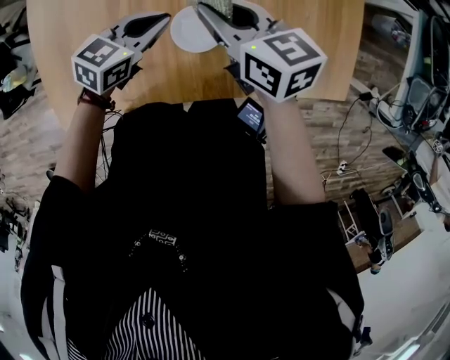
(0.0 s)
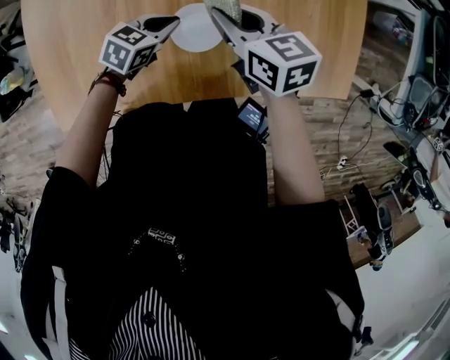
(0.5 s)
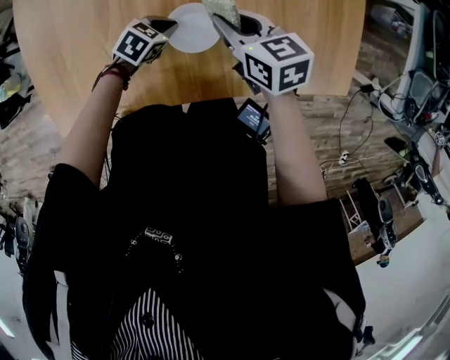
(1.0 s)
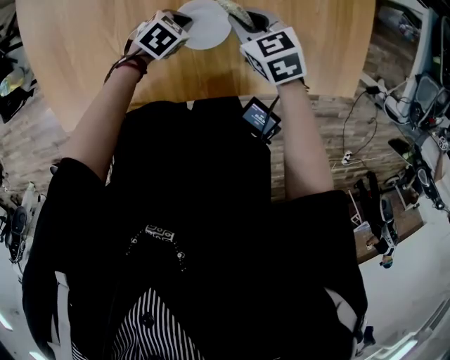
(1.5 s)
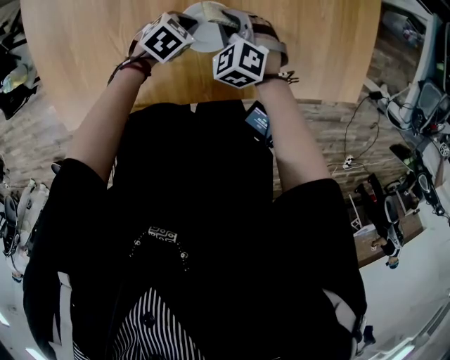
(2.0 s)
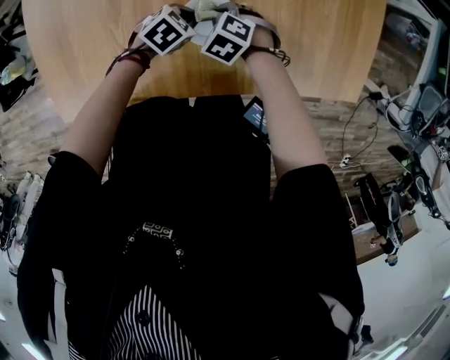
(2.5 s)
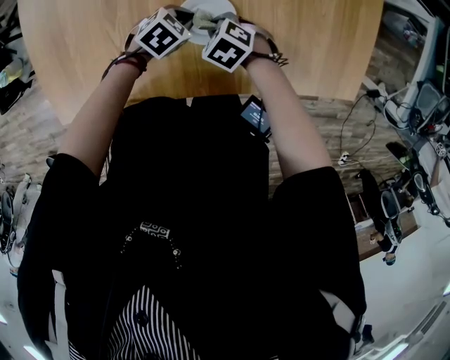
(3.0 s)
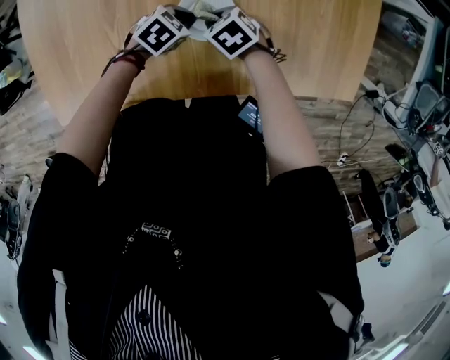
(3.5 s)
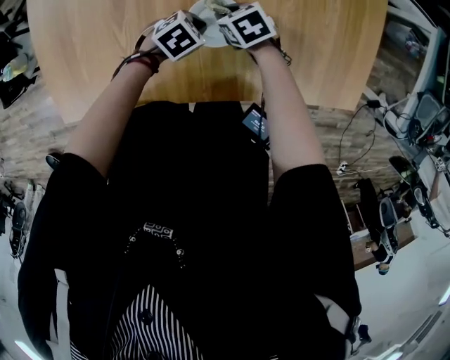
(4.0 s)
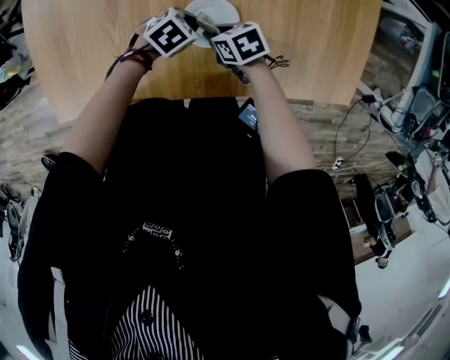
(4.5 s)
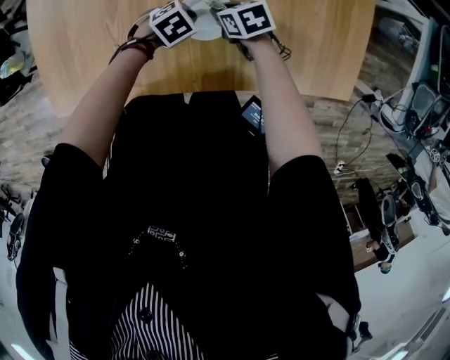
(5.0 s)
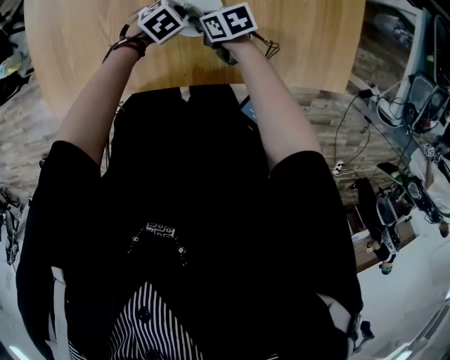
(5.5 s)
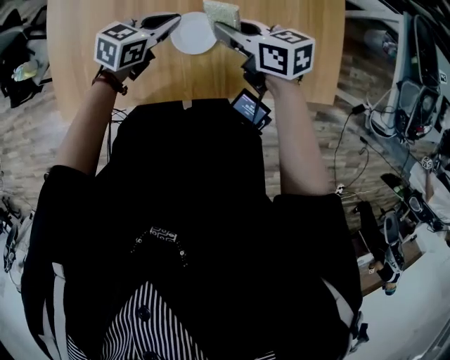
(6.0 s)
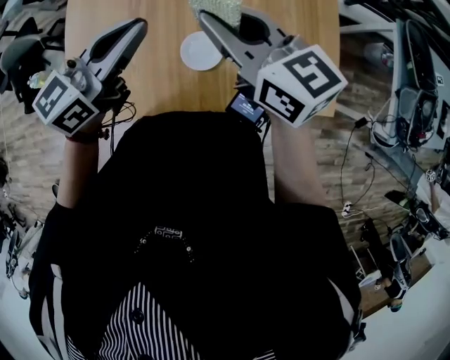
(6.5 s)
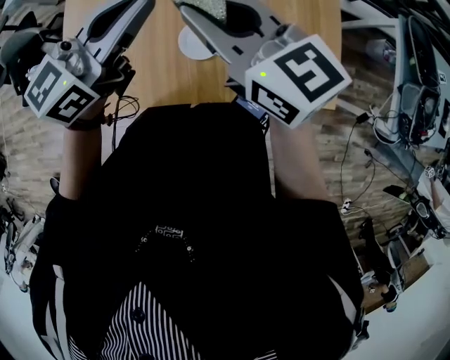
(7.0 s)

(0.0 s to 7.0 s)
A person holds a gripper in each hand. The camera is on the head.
0.0 s - 2.0 s: Both grippers move downward, about 20 cm. The right gripper rotates around the line of its fingers by about 50 degrees, counterclockwise from behind; the left gripper turns by approximately 30 degrees.
2.0 s - 3.5 s: The right gripper changes place by about 5 cm, and swivels approximately 40 degrees.
5.0 s - 7.0 s: The two grippers go approximately 50 cm upward. The right gripper angles its fingers upward, by about 50 degrees; the left gripper tilts its fingers approximately 70 degrees upward.

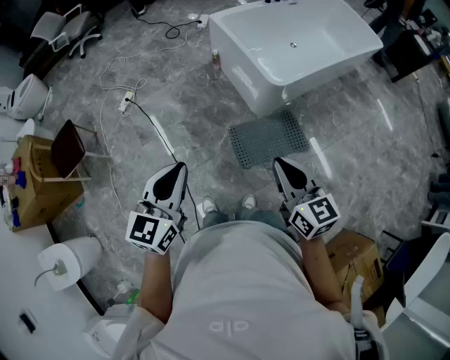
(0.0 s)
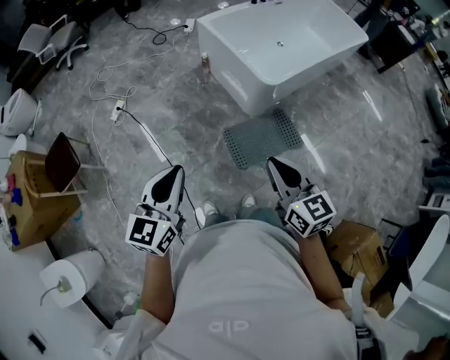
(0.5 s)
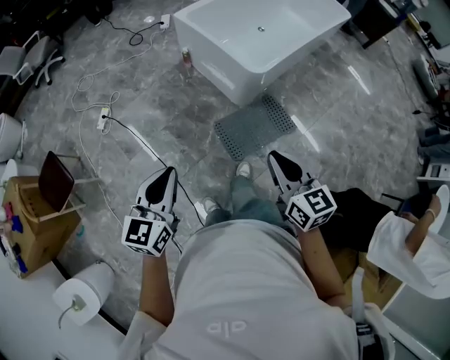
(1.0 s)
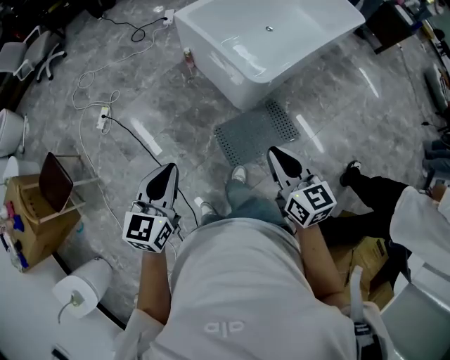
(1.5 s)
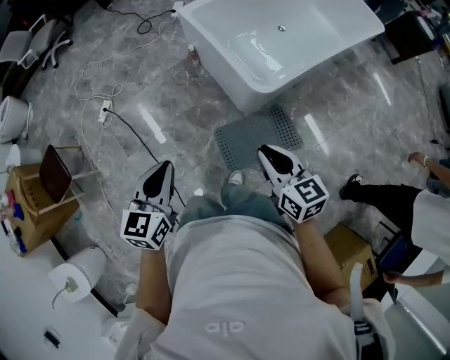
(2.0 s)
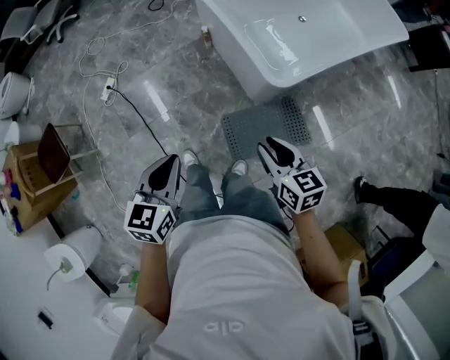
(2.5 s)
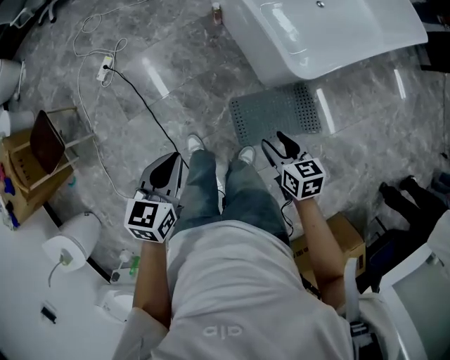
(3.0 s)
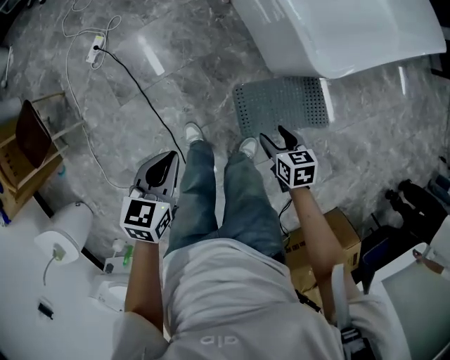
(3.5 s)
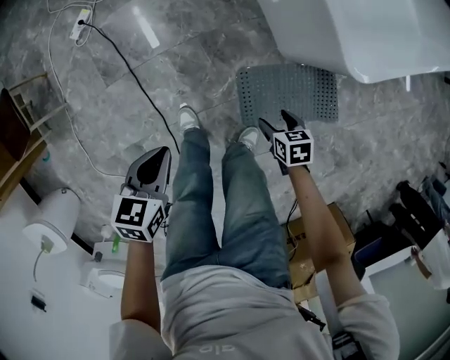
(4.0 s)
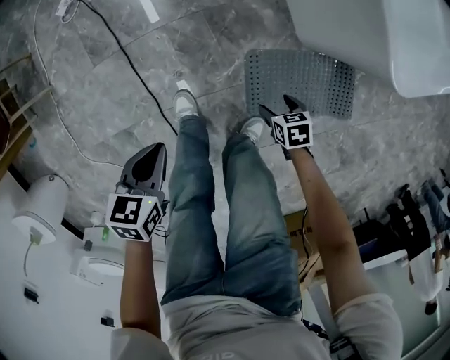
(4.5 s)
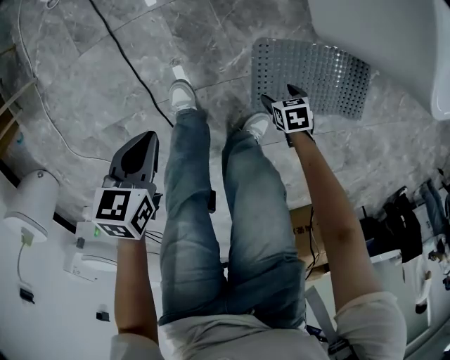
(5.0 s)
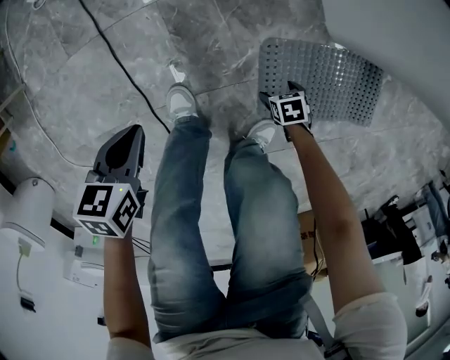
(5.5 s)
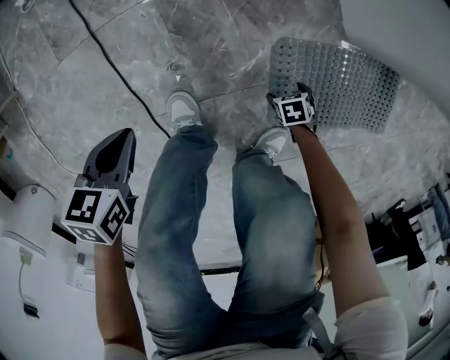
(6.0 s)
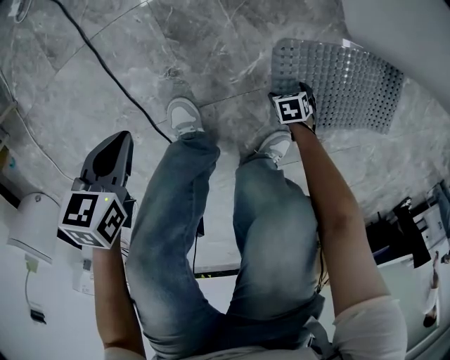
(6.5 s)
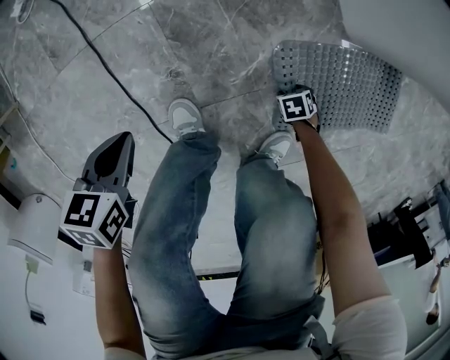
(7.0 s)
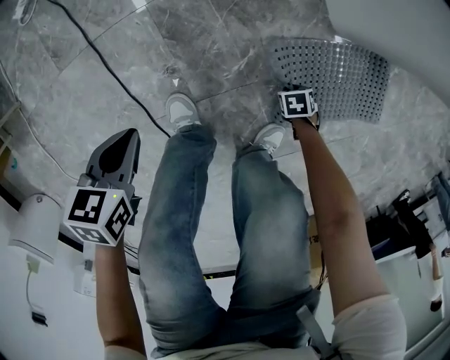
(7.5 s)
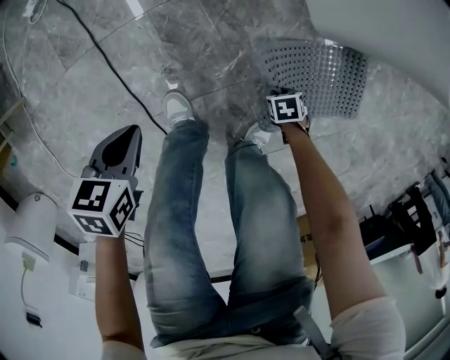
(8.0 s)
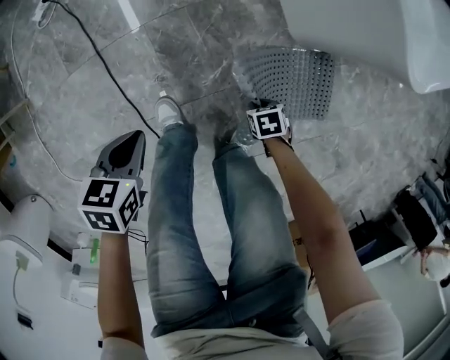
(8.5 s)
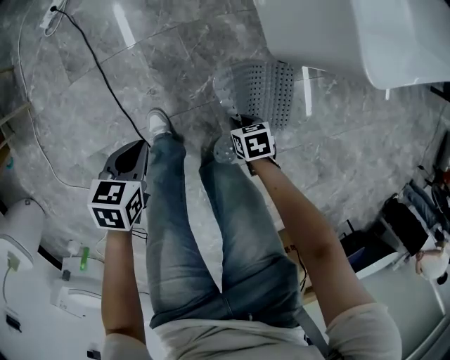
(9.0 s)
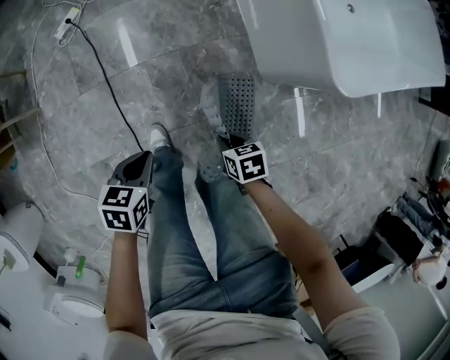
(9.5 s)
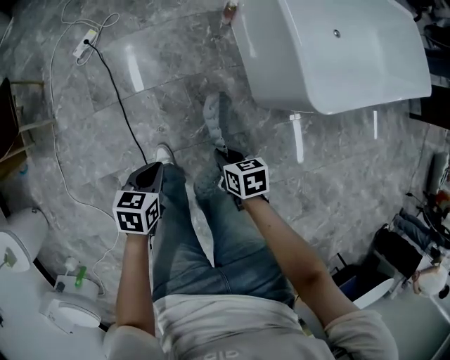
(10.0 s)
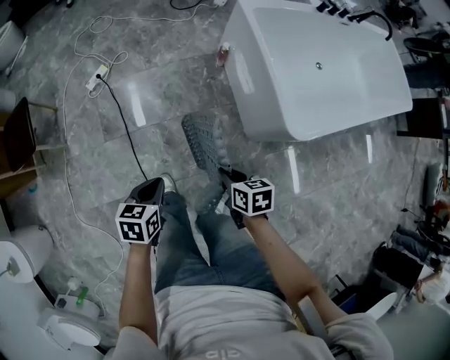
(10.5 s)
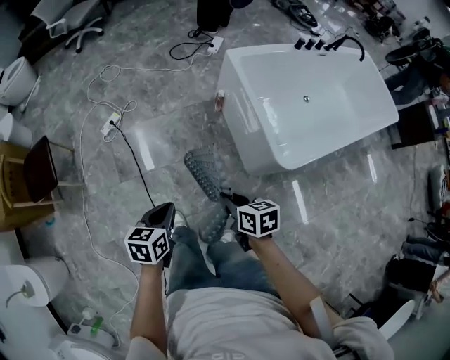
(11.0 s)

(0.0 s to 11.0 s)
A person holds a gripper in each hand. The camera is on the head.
0.0 s - 2.0 s: The left gripper shifts roughly 25 cm forward, while the right gripper moves forward and downward, approximately 25 cm.
2.0 s - 3.5 s: The left gripper shifts approximately 25 cm downward and to the left, and swivels approximately 20 degrees, while the right gripper heads downward, covering roughly 35 cm, angles its fingers downward, by some 30 degrees, and opens.
3.5 s - 5.5 s: Both grippers travel together downward, some 50 cm. The left gripper turns by some 20 degrees; the right gripper turns by some 30 degrees.
5.5 s - 7.5 s: The right gripper closes.
7.5 s - 9.0 s: The left gripper travels upward by approximately 15 cm. Meanwhile the right gripper shifts approximately 30 cm upward, and turns by about 20 degrees.
9.0 s - 11.0 s: Both grippers travel together upward, roughly 50 cm. The right gripper turns by roughly 30 degrees. Meanwhile the left gripper swivels some 20 degrees.

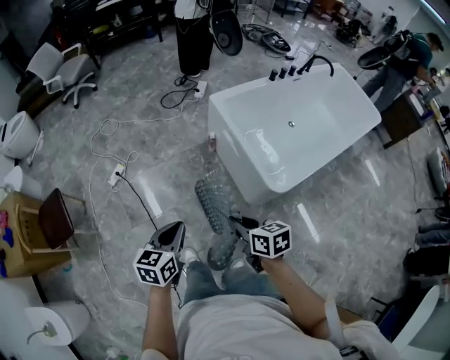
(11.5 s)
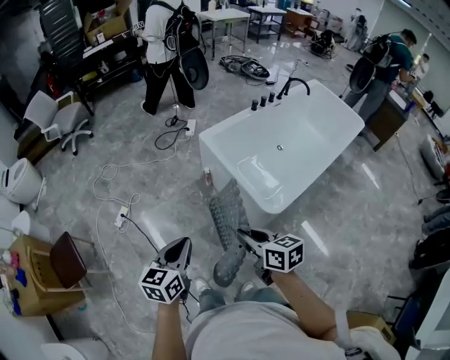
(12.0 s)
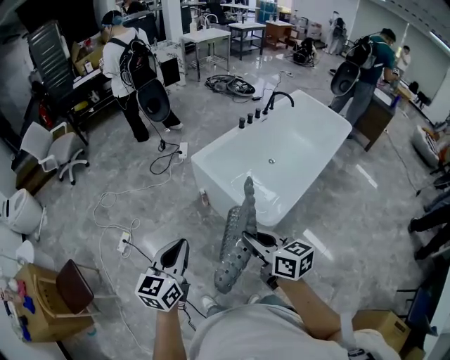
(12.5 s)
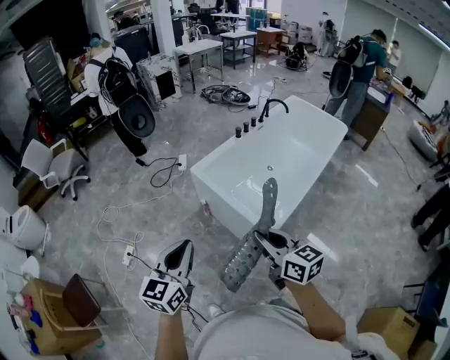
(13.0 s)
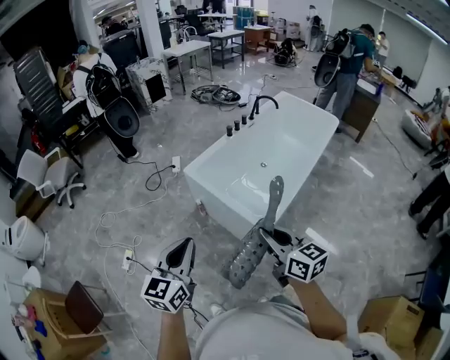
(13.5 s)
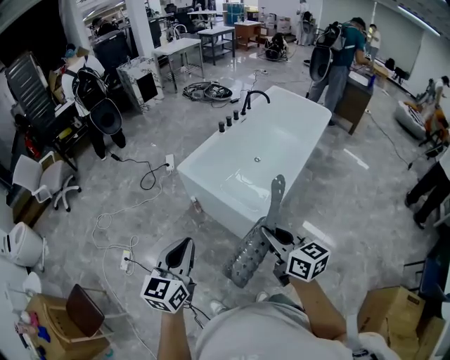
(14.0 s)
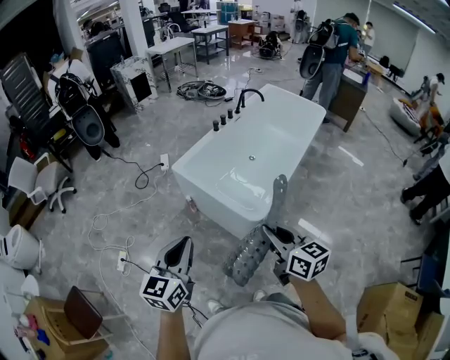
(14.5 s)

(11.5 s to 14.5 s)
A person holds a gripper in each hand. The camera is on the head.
11.5 s - 13.0 s: The right gripper heads upward and to the right, covering approximately 25 cm, and changes its angle by approximately 30 degrees, while the left gripper heads upward, covering some 25 cm, and rotates approximately 30 degrees.
13.0 s - 14.5 s: The left gripper moves about 5 cm, while the right gripper heads to the right, covering about 10 cm.

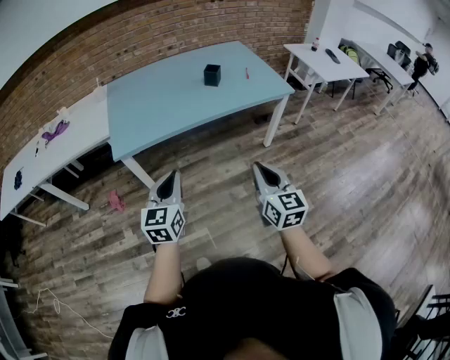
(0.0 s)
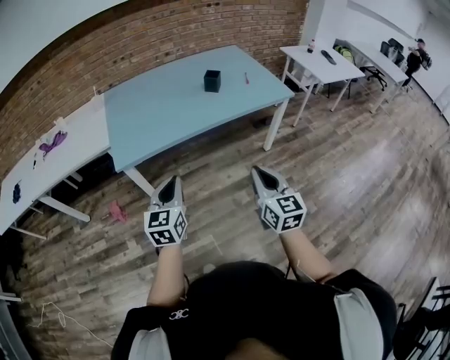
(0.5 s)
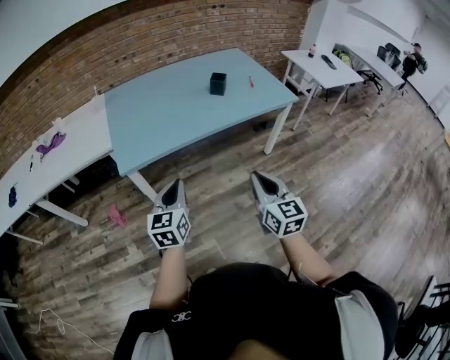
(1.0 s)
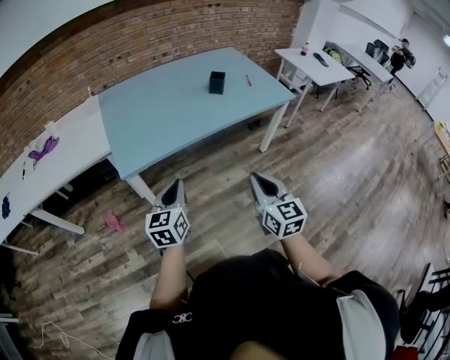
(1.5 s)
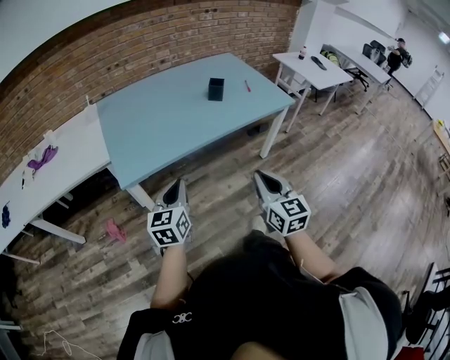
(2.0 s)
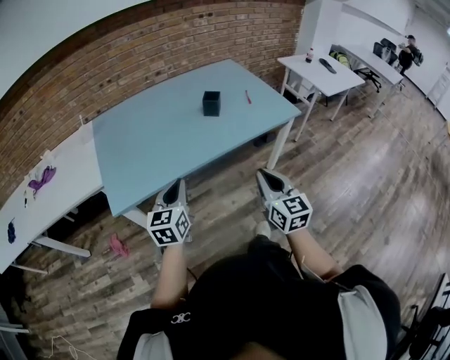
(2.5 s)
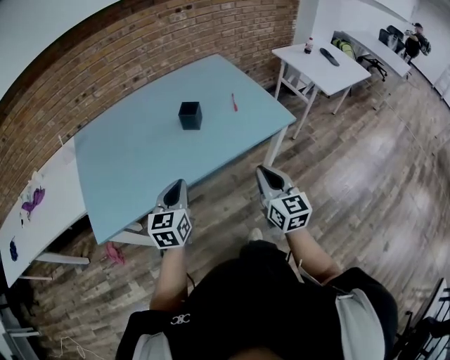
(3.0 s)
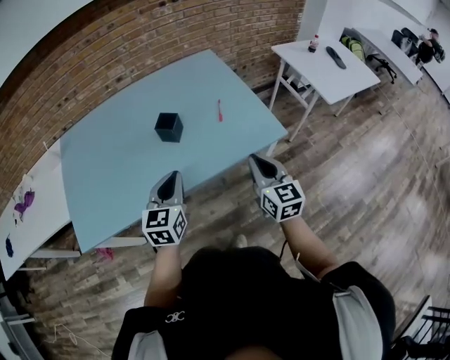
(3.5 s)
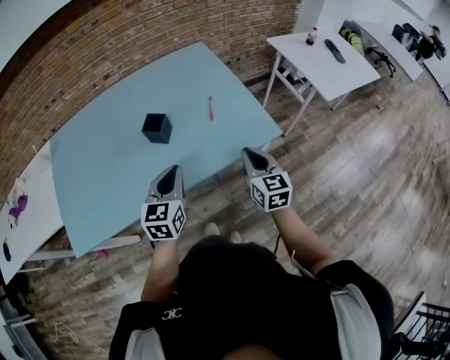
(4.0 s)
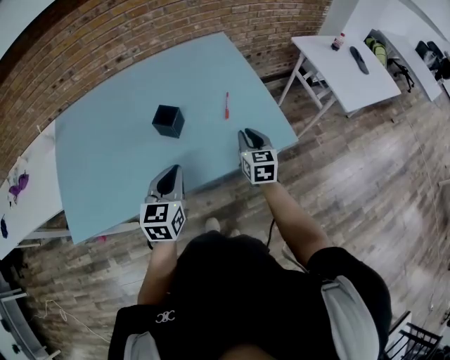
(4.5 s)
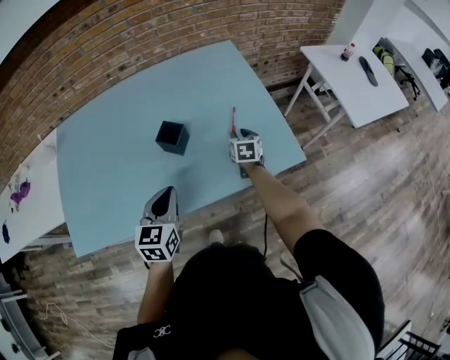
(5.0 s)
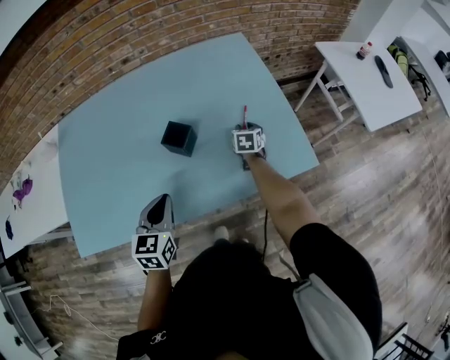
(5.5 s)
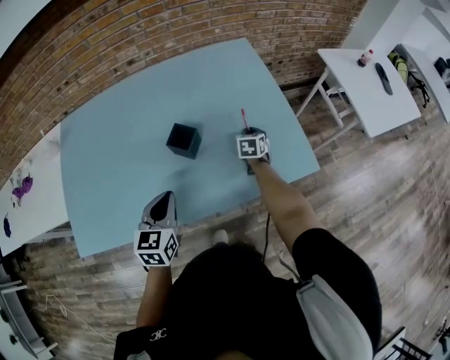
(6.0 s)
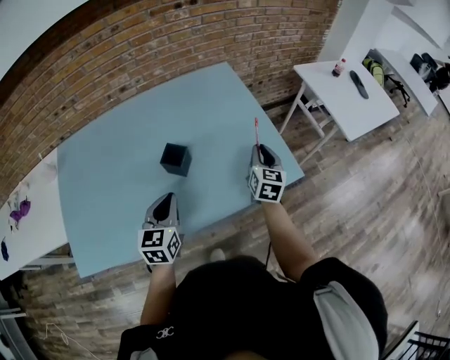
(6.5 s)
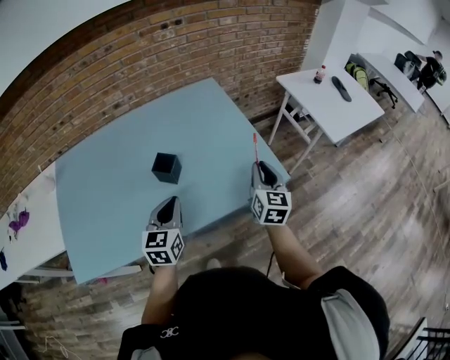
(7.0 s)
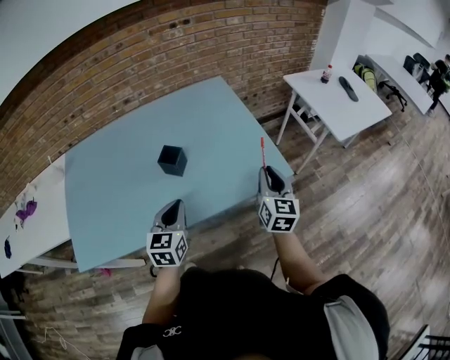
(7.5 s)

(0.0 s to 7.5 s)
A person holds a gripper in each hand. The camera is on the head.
0.0 s - 2.0 s: The right gripper is displaced to the left and forward by about 15 cm; the left gripper moves to the left, forward and downward, about 15 cm.
2.0 s - 4.0 s: The two grippers travel together, forward and to the right, roughly 50 cm.
4.0 s - 5.5 s: The left gripper goes about 10 cm to the left and downward; the right gripper moves forward and downward, roughly 35 cm, angles its fingers downward, by approximately 30 degrees, and opens up.
5.5 s - 7.5 s: The right gripper travels upward, backward and to the right by about 35 cm, and tips its fingers upward by some 40 degrees, while the left gripper moves to the right, roughly 5 cm.
